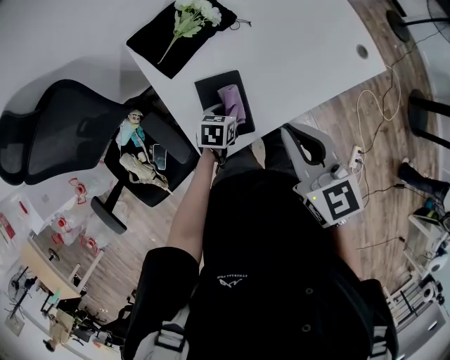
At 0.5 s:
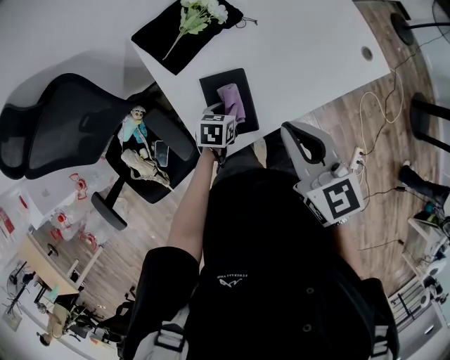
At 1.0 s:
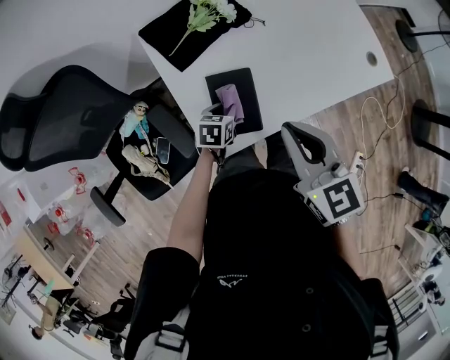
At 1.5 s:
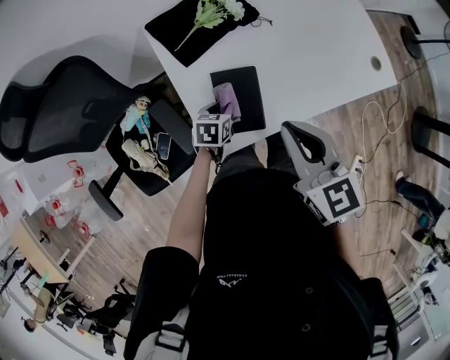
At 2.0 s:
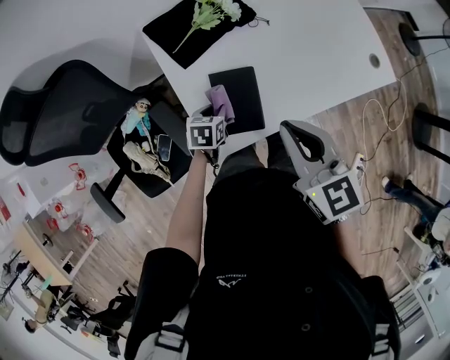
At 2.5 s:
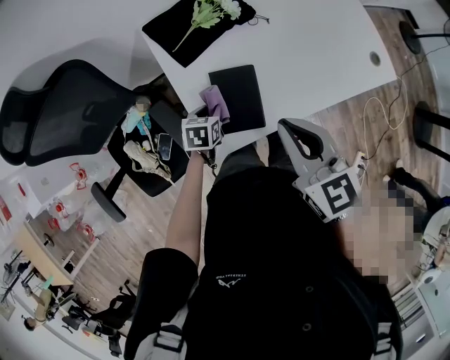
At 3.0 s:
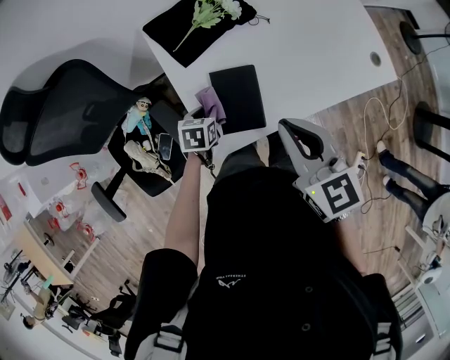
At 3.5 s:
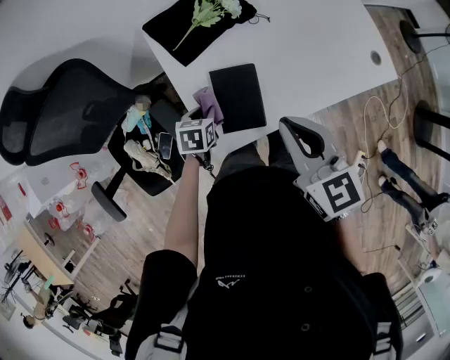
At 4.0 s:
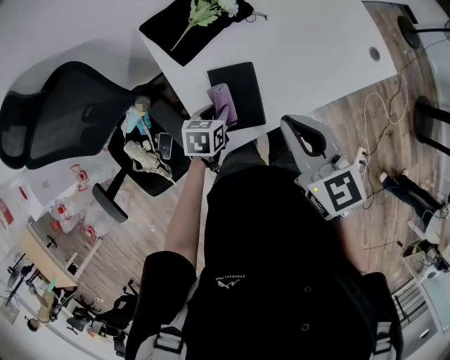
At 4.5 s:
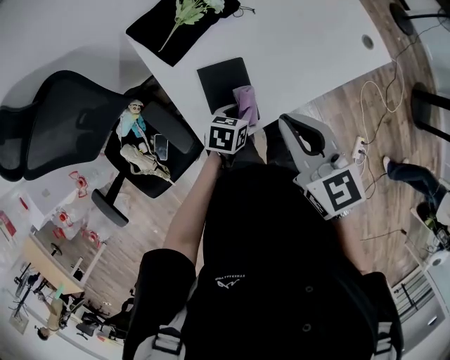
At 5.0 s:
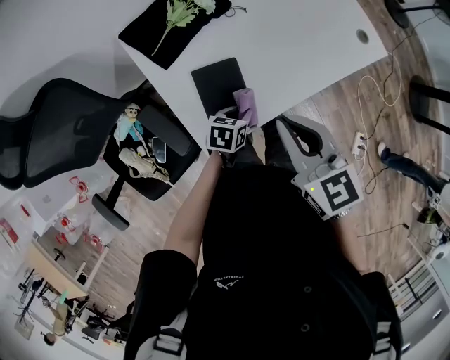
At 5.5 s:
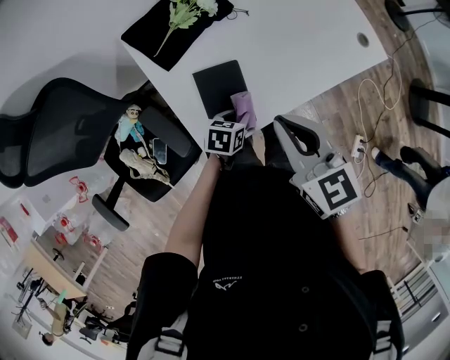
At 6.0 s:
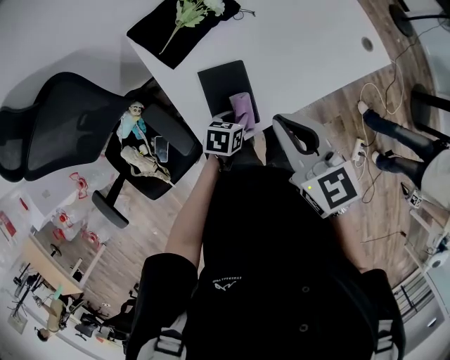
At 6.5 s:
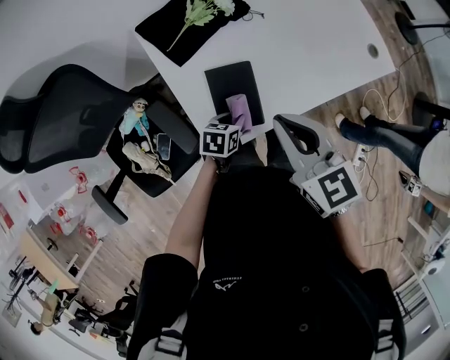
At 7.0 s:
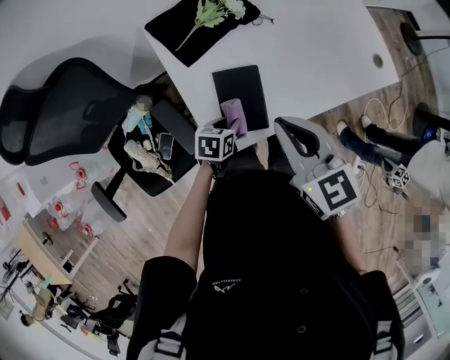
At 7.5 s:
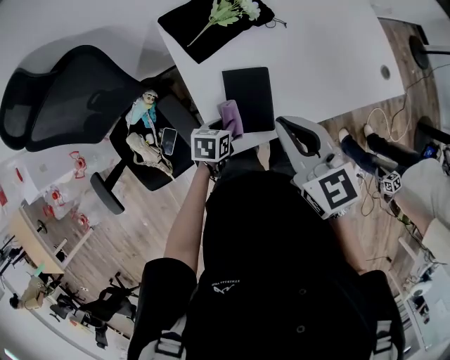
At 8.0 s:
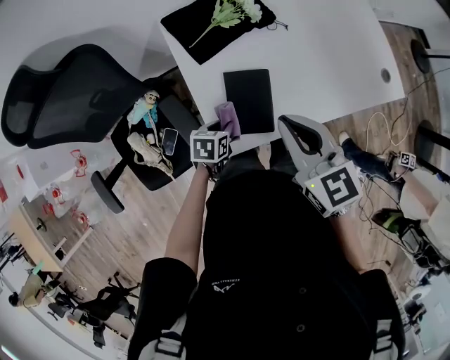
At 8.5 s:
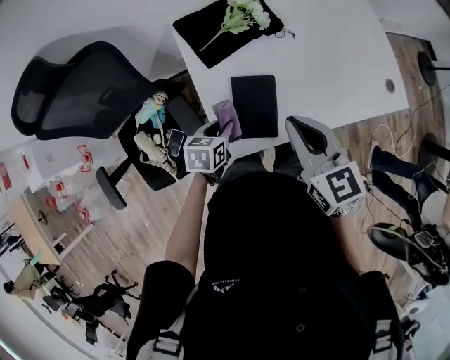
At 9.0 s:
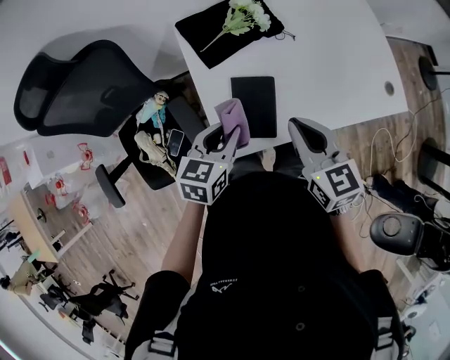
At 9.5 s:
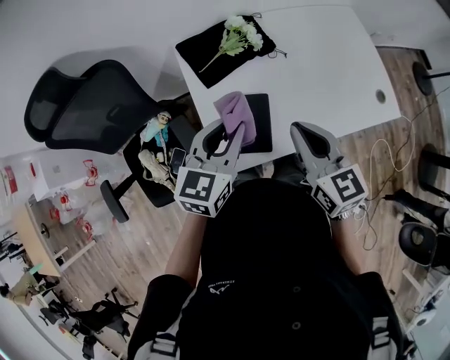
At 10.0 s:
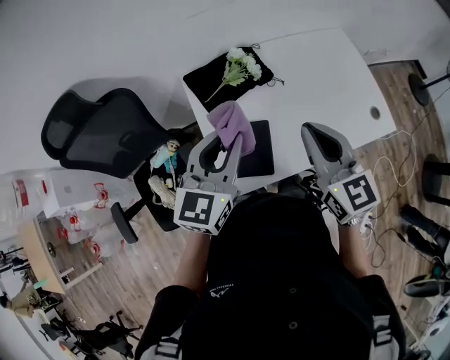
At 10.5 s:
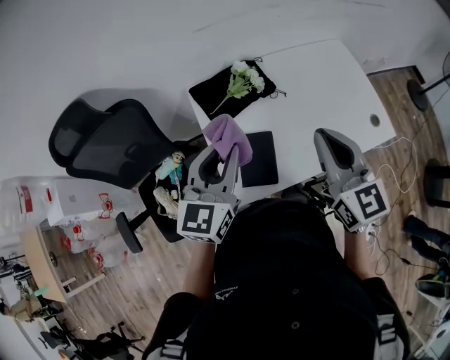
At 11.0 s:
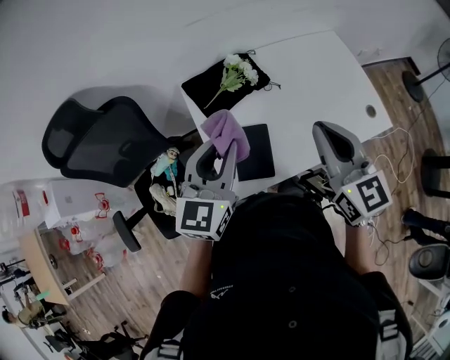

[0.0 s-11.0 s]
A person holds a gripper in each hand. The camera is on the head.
0.0 to 2.0 s: The left gripper travels to the left by approximately 10 cm.
2.0 to 3.5 s: The grippers make only small movements.
3.5 to 5.5 s: The left gripper shifts some 15 cm to the right, and swivels about 20 degrees.
5.5 to 7.5 s: The left gripper is displaced to the left by about 10 cm, while the right gripper is displaced to the left by roughly 5 cm.
7.5 to 9.0 s: The left gripper travels upward by roughly 20 cm, and changes its angle by about 30 degrees.
9.0 to 11.0 s: The right gripper heads upward and to the right, covering approximately 15 cm, and swivels roughly 20 degrees; the left gripper travels upward by roughly 20 cm, and changes its angle by about 30 degrees.

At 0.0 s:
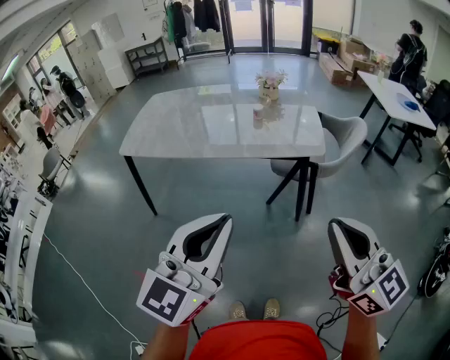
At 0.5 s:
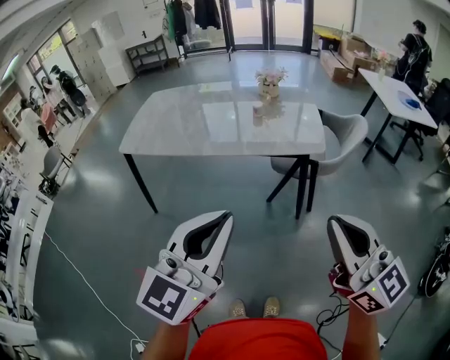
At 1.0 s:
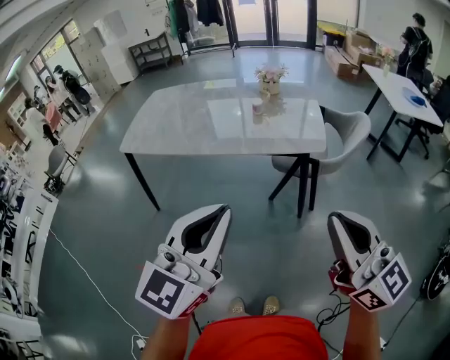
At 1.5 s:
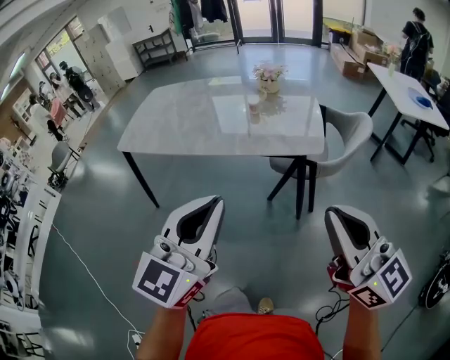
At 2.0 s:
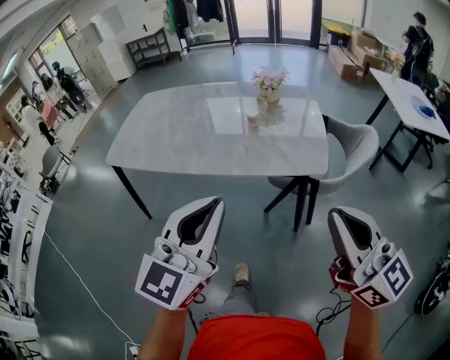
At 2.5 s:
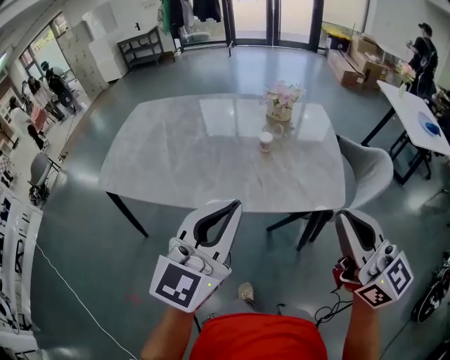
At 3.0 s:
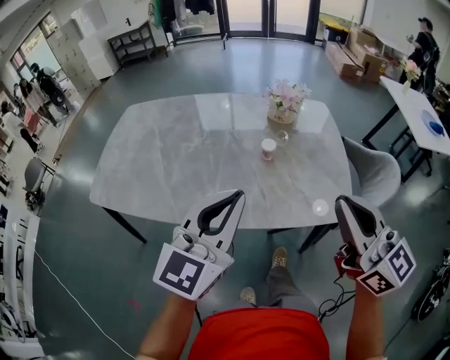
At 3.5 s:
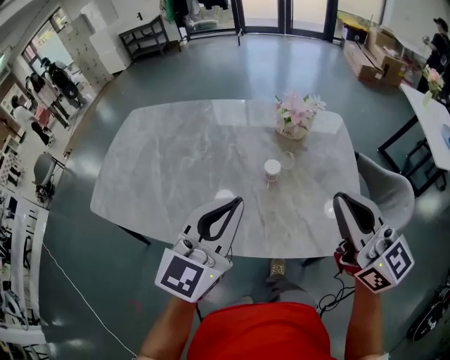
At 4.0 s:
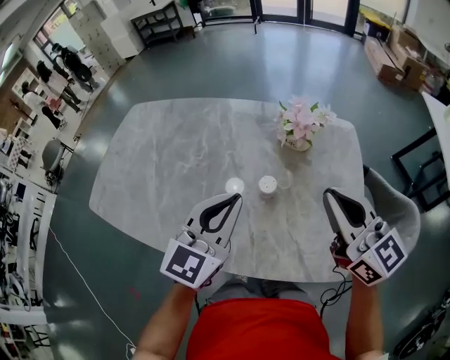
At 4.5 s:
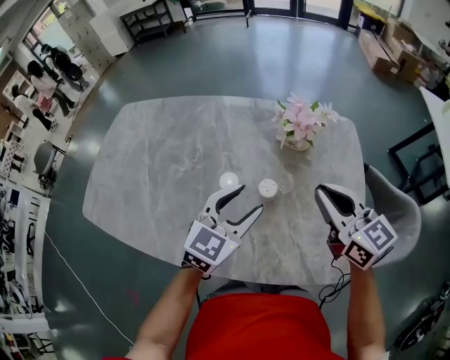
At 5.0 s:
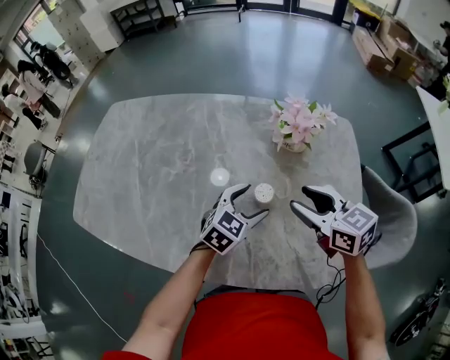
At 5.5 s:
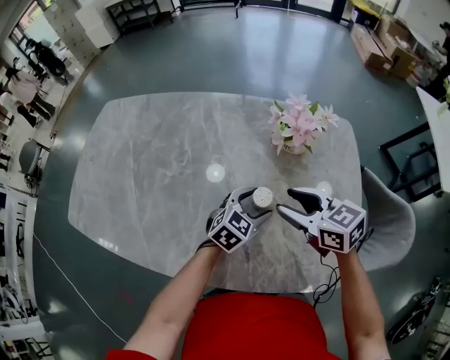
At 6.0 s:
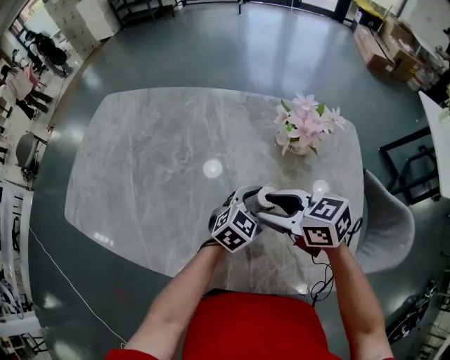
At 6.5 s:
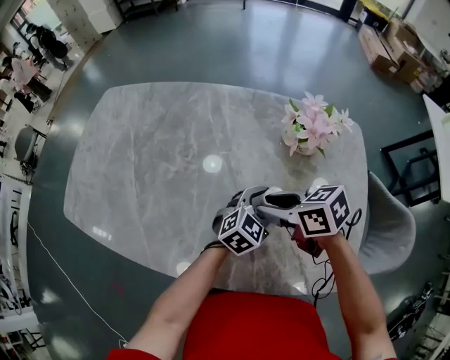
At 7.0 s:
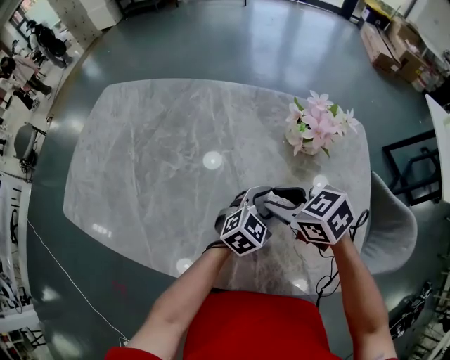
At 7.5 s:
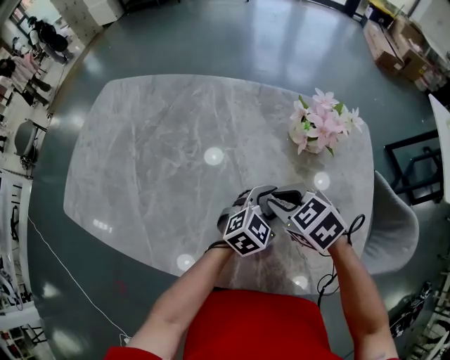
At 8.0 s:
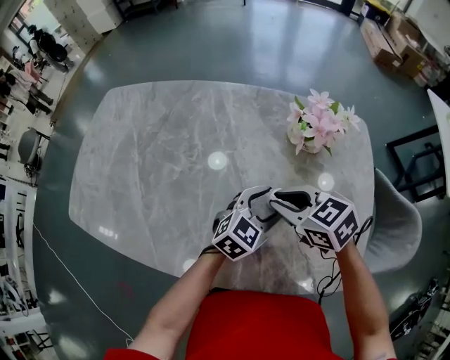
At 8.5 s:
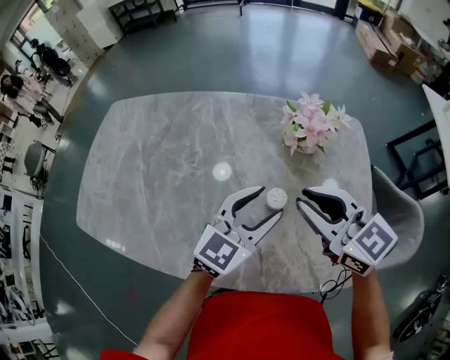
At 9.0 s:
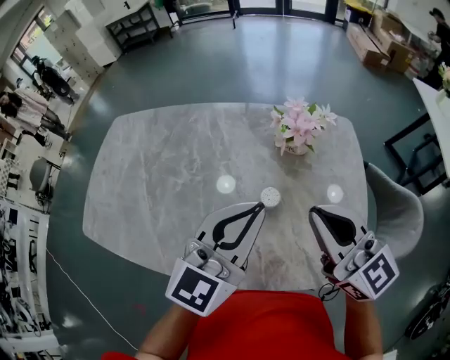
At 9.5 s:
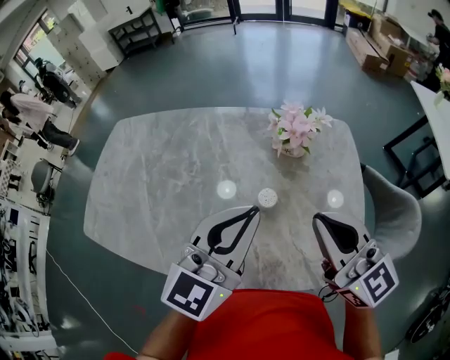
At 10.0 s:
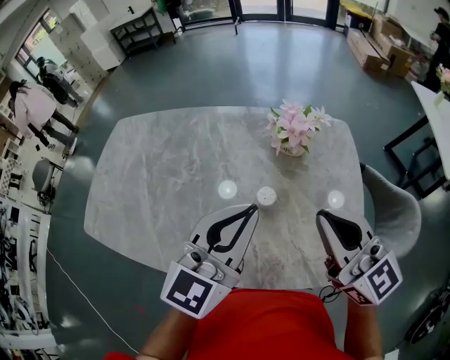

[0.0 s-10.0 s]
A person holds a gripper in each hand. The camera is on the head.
0.0 to 2.0 s: Both grippers travel together forward, approximately 15 cm.
2.0 to 4.0 s: The two grippers travel together, forward, approximately 50 cm.
4.0 to 6.0 s: The left gripper is displaced downward and forward by some 25 cm, rotates roughly 30 degrees, and opens its fingers. The right gripper is displaced downward and to the left by about 20 cm, tips its fingers downward by roughly 30 degrees, and opens its fingers.
6.0 to 8.0 s: The right gripper closes.
8.0 to 10.0 s: The right gripper is displaced upward, to the right and backward by roughly 25 cm, and tilts its fingers some 40 degrees upward. Meanwhile the left gripper moves upward, about 25 cm, rotates approximately 30 degrees, and closes.

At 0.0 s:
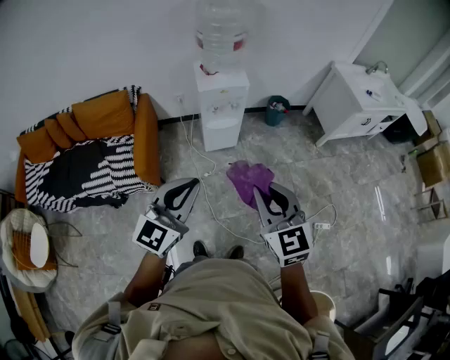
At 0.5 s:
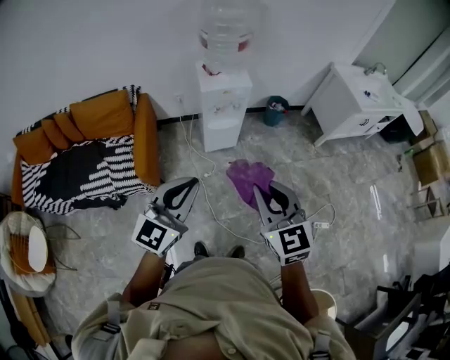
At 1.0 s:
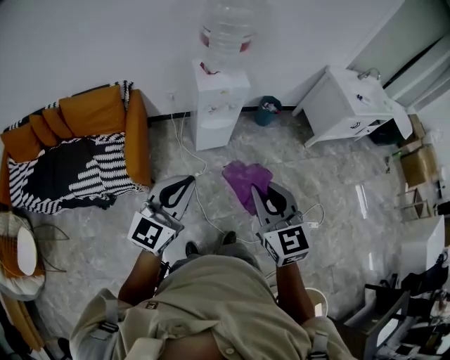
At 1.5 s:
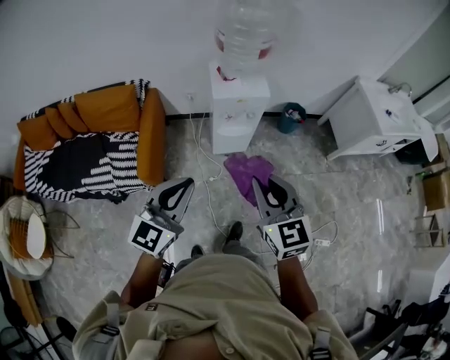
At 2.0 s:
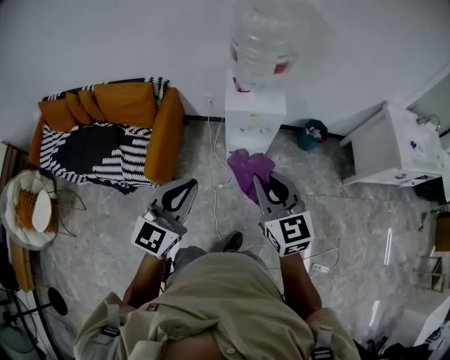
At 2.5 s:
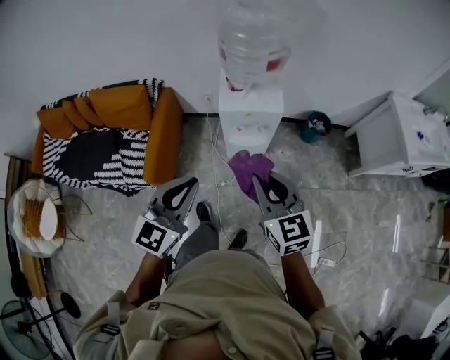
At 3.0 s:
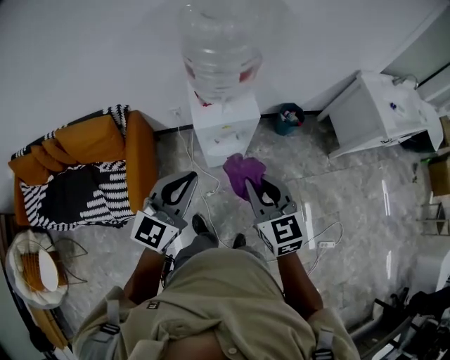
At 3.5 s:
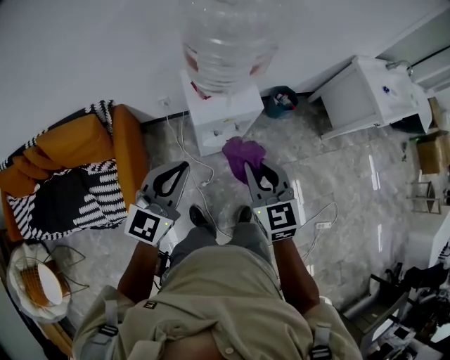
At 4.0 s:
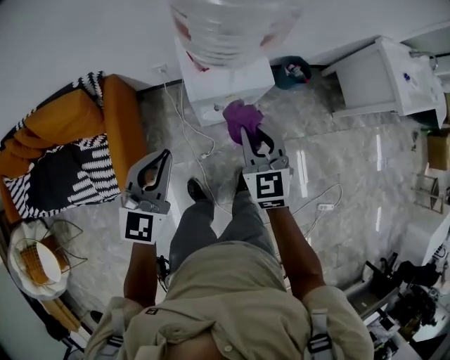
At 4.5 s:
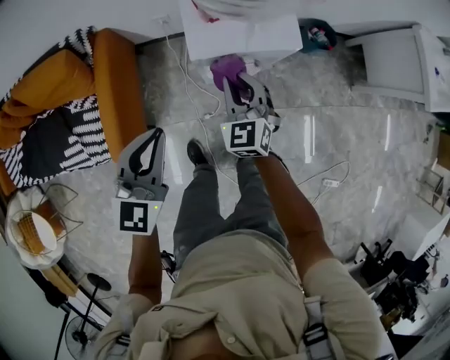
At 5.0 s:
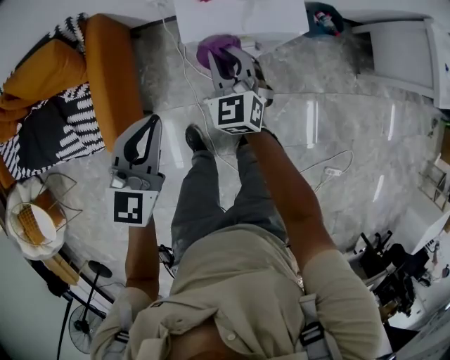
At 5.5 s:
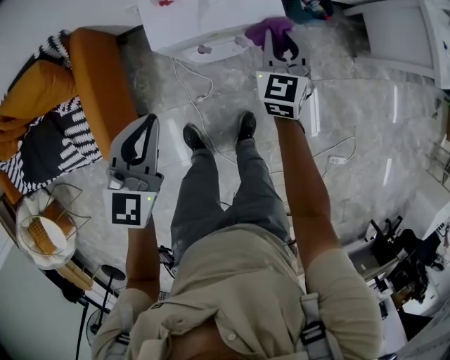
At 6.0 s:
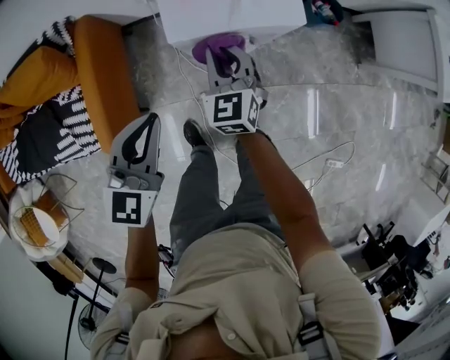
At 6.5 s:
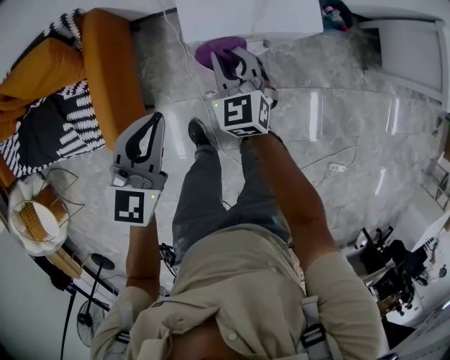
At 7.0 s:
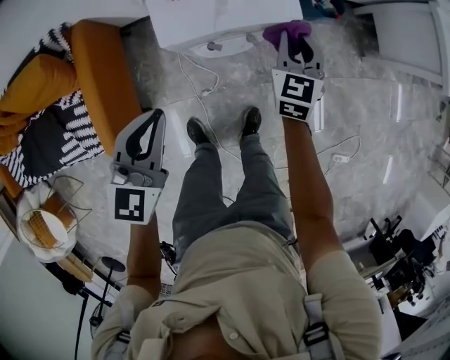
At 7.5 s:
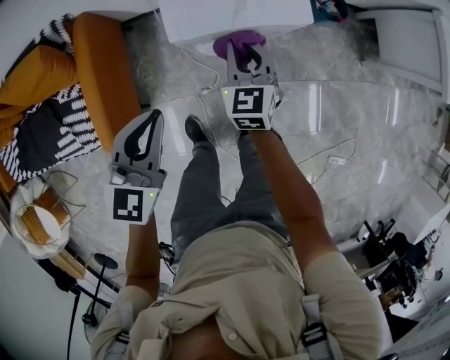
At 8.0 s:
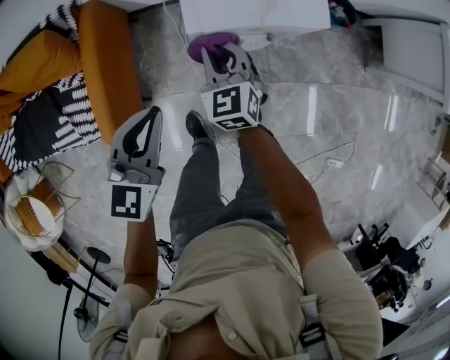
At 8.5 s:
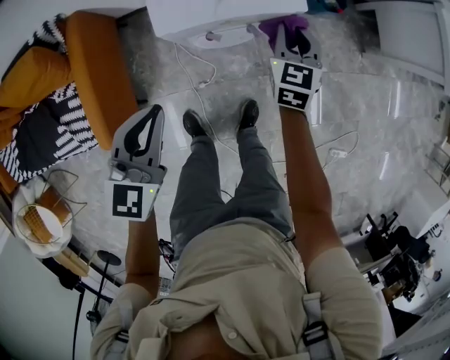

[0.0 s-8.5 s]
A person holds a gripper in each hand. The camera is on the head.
0.0 to 2.0 s: Both grippers travel together forward, some 25 cm.
2.0 to 4.0 s: Both grippers travel together forward and downward, approximately 30 cm. The right gripper turns by some 20 degrees.
4.0 to 6.5 s: The left gripper heads downward, covering some 15 cm; the right gripper heads downward and to the left, covering about 20 cm.
6.5 to 8.5 s: The right gripper swings left and right, approximately 25 cm each way, with 2 reversals, and changes its angle by roughly 30 degrees. Meanwhile the left gripper moves left and right over some 5 cm, changing direction 2 times.
